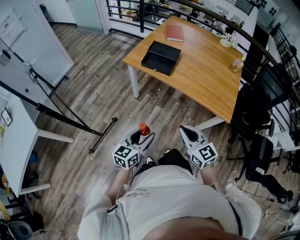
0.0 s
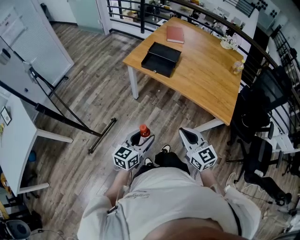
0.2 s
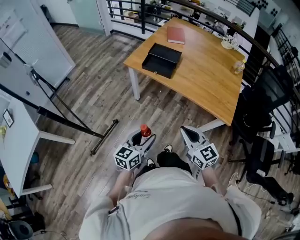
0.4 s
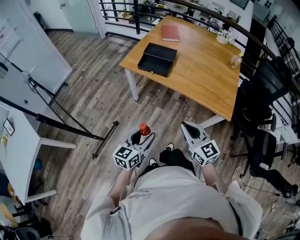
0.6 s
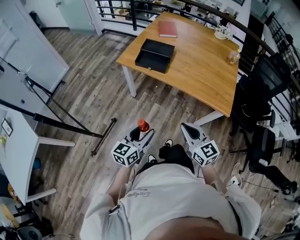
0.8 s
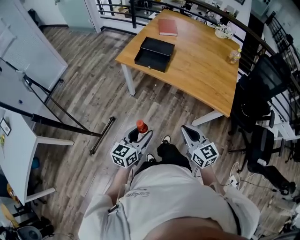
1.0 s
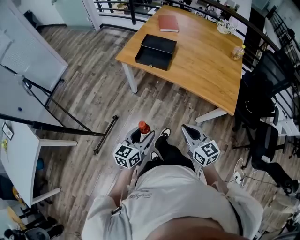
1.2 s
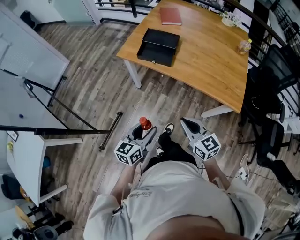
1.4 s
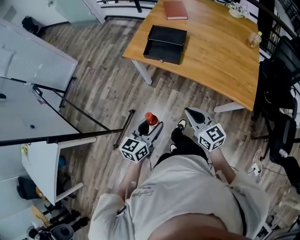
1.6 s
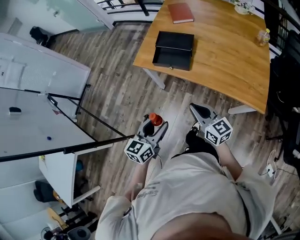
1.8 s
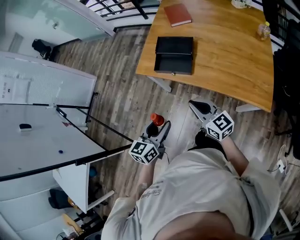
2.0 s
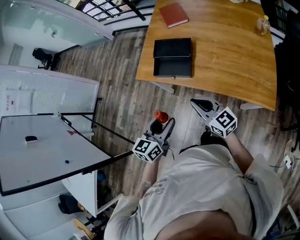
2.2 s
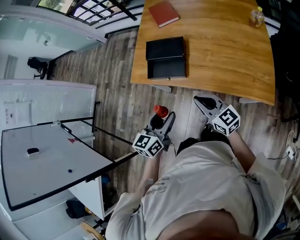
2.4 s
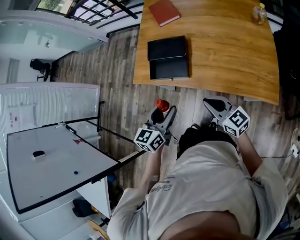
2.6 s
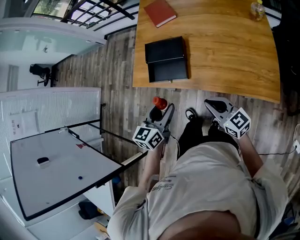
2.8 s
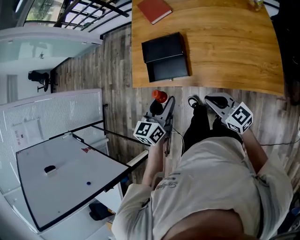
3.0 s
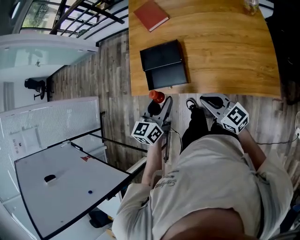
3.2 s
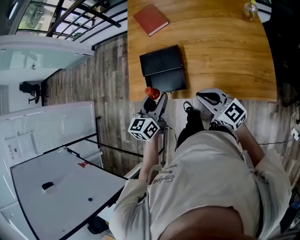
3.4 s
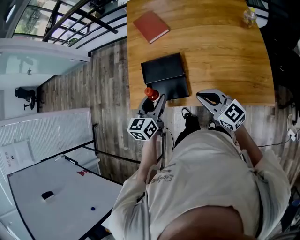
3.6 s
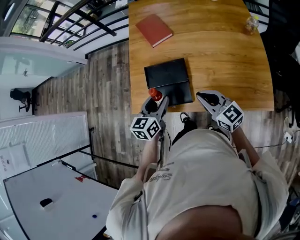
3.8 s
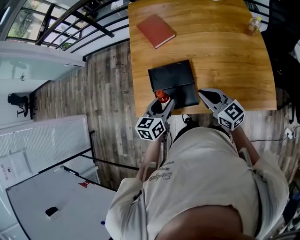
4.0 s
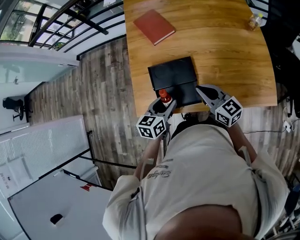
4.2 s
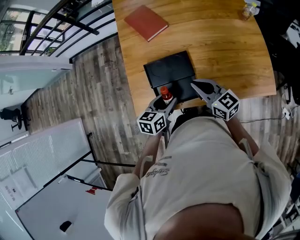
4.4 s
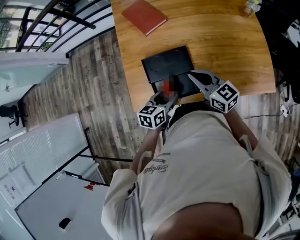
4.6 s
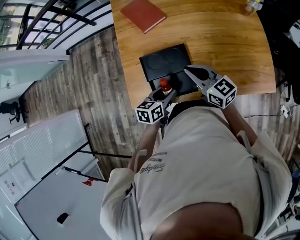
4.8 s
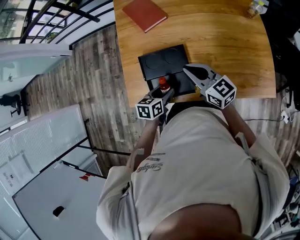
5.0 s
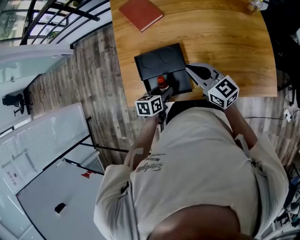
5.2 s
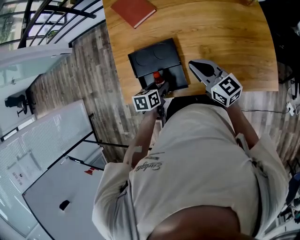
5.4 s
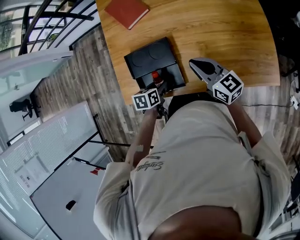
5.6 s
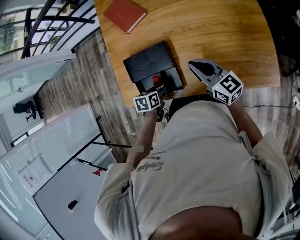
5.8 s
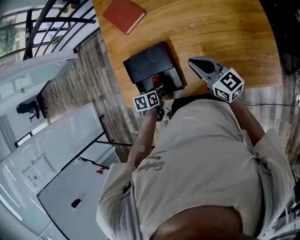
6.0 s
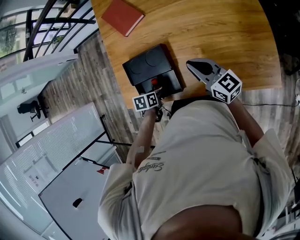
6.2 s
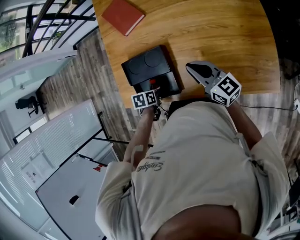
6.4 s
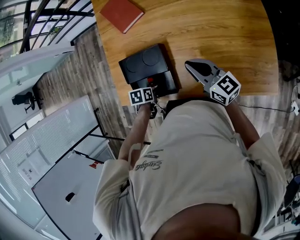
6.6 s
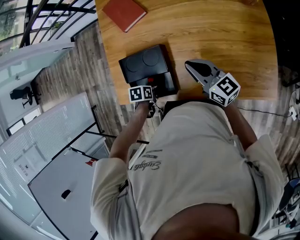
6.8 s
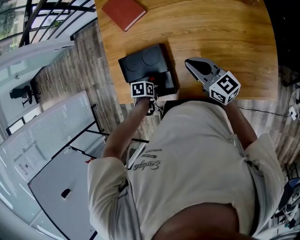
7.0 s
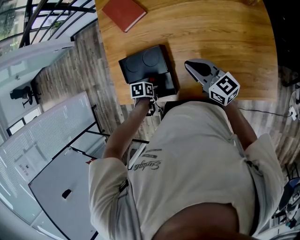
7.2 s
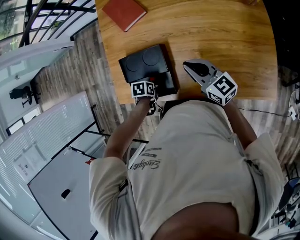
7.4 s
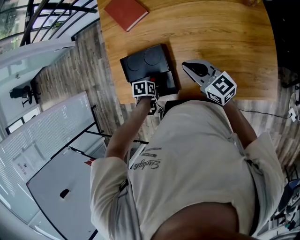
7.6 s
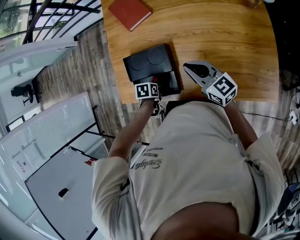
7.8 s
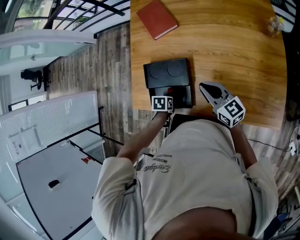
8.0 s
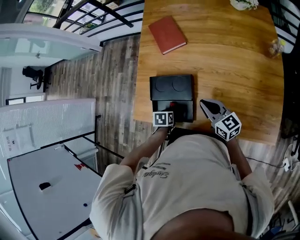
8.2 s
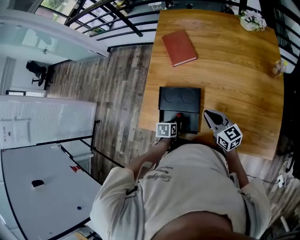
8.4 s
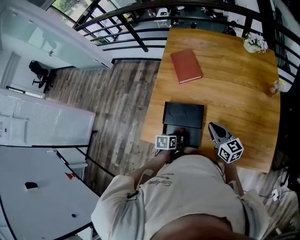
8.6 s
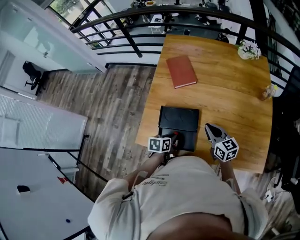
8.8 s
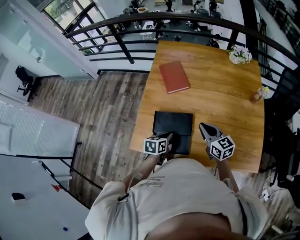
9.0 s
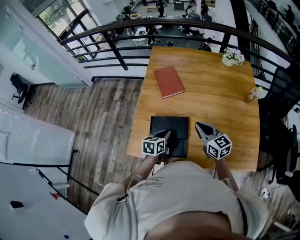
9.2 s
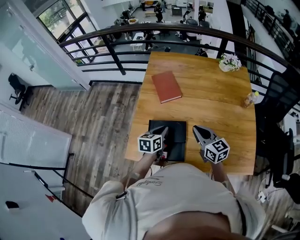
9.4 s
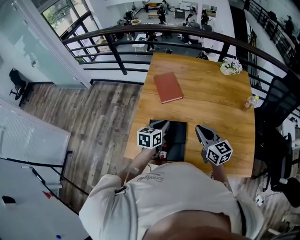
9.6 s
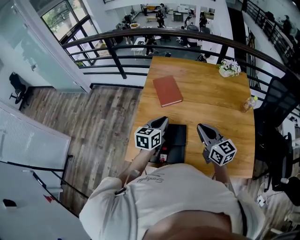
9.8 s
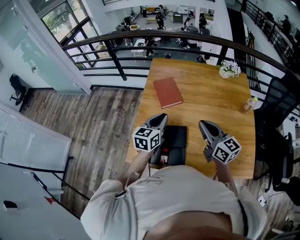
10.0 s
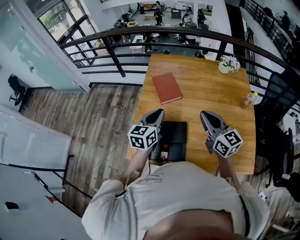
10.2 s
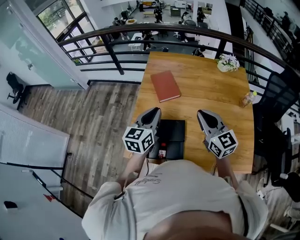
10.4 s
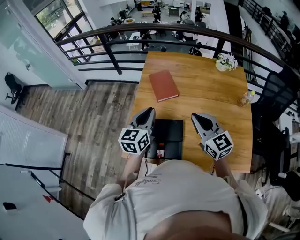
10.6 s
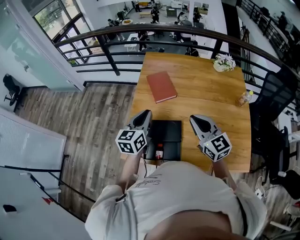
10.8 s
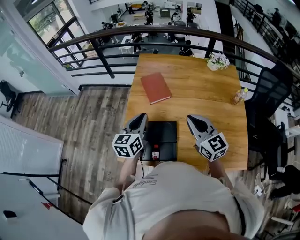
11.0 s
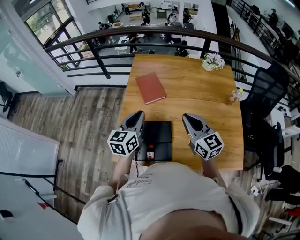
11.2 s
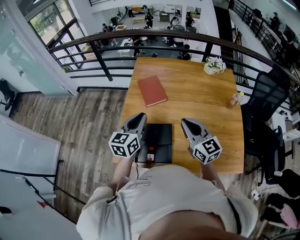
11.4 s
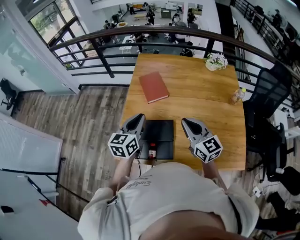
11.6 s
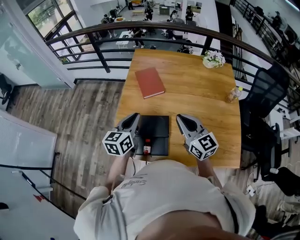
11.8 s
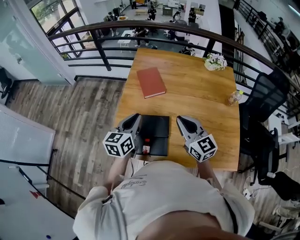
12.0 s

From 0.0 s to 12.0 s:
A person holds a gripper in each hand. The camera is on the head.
From 0.0 s to 1.6 s: The grippers both shift forward by roughly 15 cm.
From 1.6 s to 3.0 s: The left gripper is displaced forward by some 30 cm. The right gripper travels forward and to the right by roughly 20 cm.
From 3.0 s to 4.4 s: The right gripper travels forward and to the left by roughly 25 cm. The left gripper goes some 20 cm forward, downward and to the left, and changes its angle by roughly 30 degrees.
From 4.4 s to 6.0 s: The left gripper is displaced downward by some 15 cm, and points its fingers about 30 degrees further downward, while the right gripper moves to the right, approximately 15 cm.
From 6.0 s to 7.6 s: The left gripper turns by about 20 degrees.
From 7.6 s to 9.0 s: The right gripper changes place by approximately 10 cm; the left gripper travels upward by about 15 cm, tilts its fingers about 30 degrees upward, and closes its fingers.
From 9.0 s to 10.4 s: The grippers both shift upward by about 20 cm. The right gripper rotates approximately 20 degrees, while the left gripper tilts its fingers approximately 30 degrees upward.
From 10.4 s to 12.0 s: The left gripper changes place by about 5 cm, while the right gripper changes place by some 5 cm.

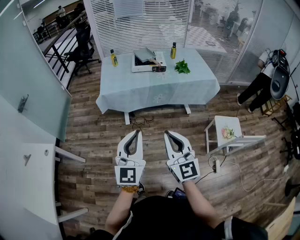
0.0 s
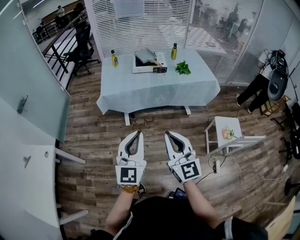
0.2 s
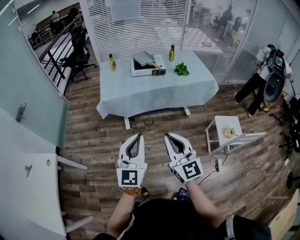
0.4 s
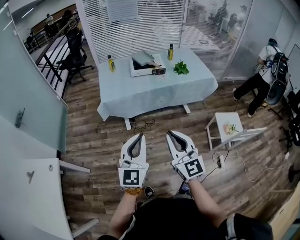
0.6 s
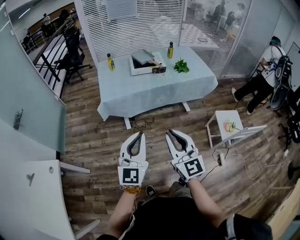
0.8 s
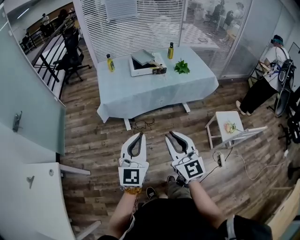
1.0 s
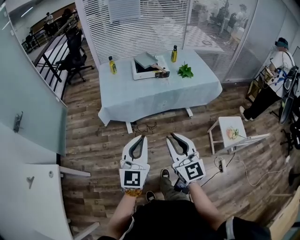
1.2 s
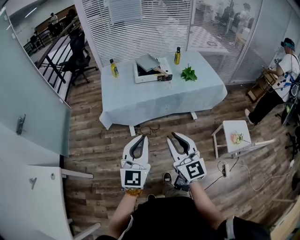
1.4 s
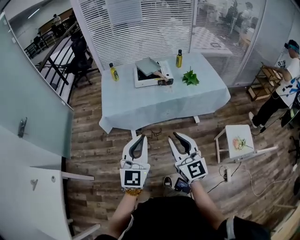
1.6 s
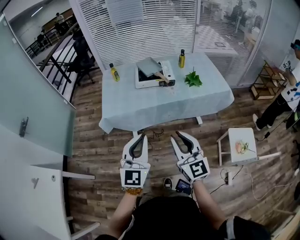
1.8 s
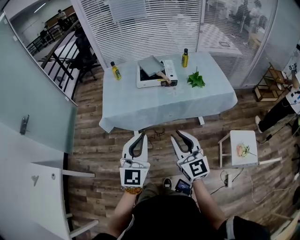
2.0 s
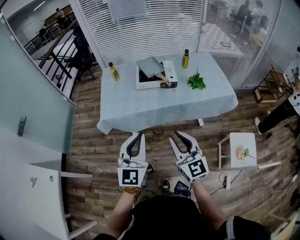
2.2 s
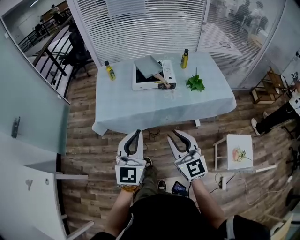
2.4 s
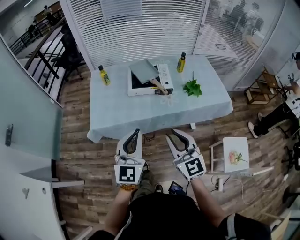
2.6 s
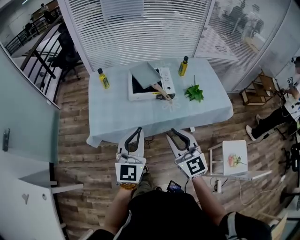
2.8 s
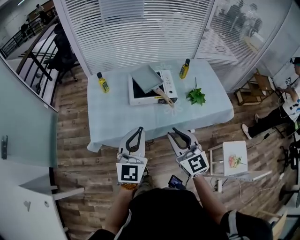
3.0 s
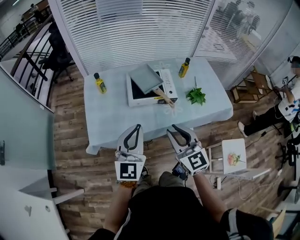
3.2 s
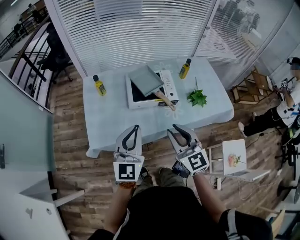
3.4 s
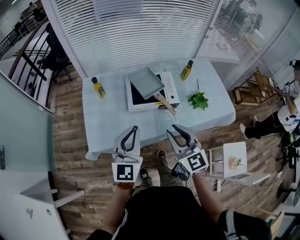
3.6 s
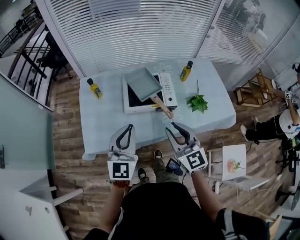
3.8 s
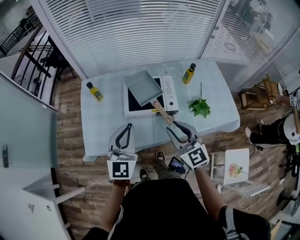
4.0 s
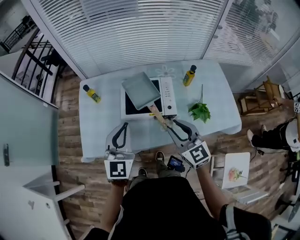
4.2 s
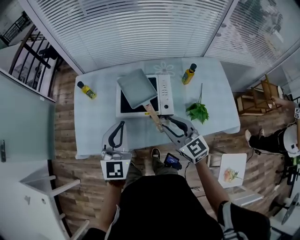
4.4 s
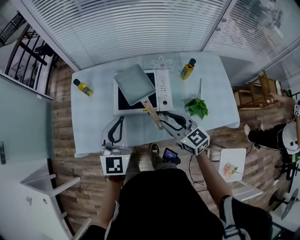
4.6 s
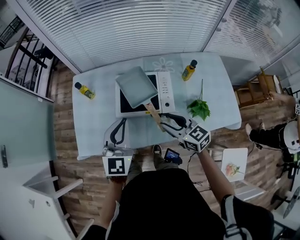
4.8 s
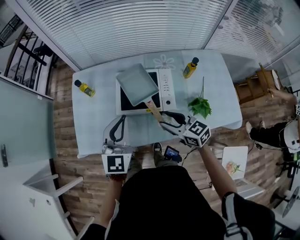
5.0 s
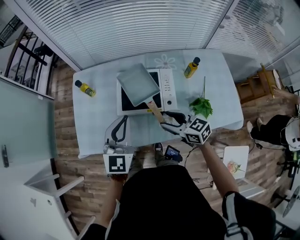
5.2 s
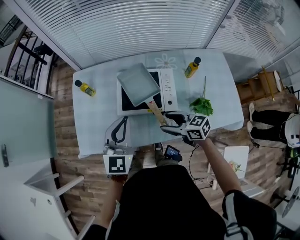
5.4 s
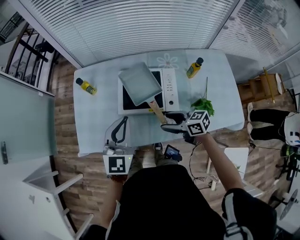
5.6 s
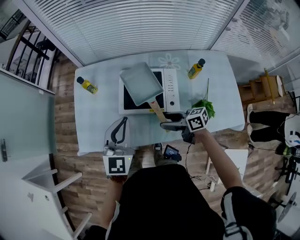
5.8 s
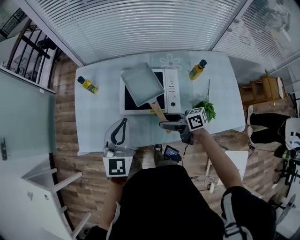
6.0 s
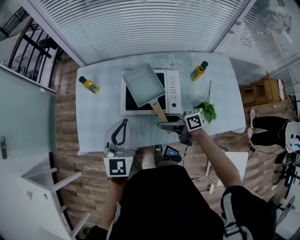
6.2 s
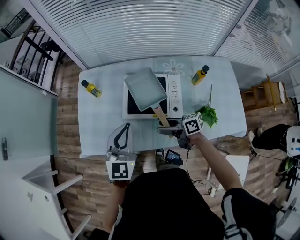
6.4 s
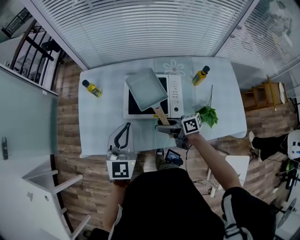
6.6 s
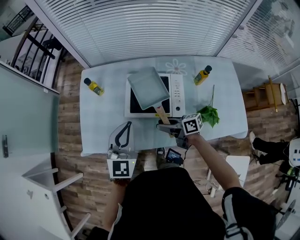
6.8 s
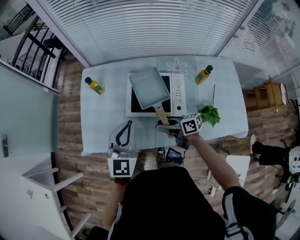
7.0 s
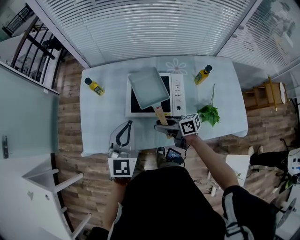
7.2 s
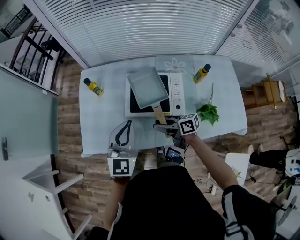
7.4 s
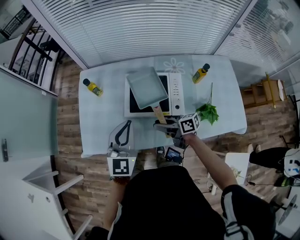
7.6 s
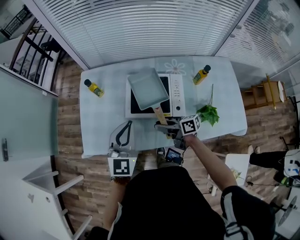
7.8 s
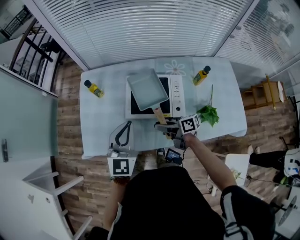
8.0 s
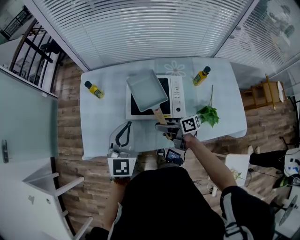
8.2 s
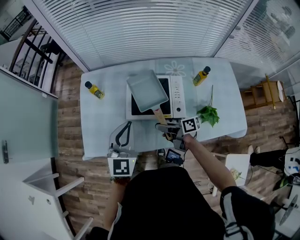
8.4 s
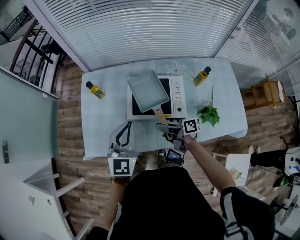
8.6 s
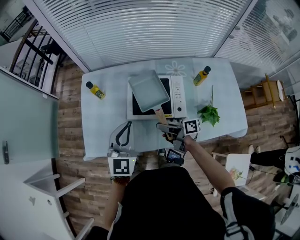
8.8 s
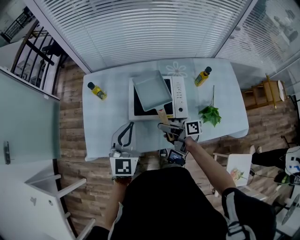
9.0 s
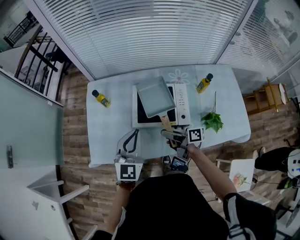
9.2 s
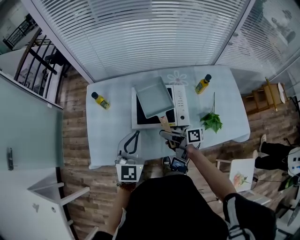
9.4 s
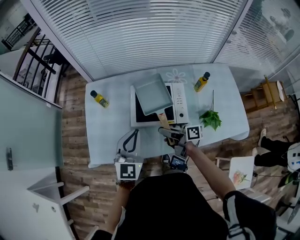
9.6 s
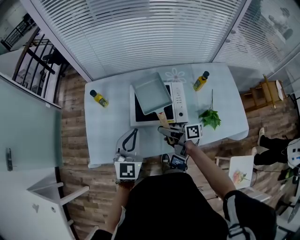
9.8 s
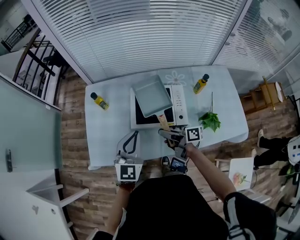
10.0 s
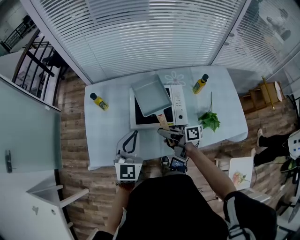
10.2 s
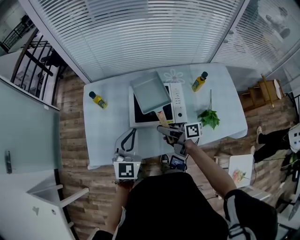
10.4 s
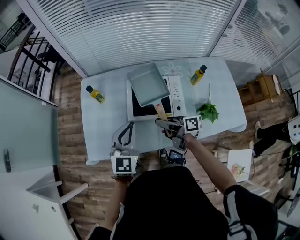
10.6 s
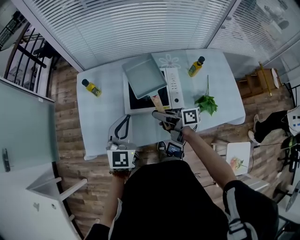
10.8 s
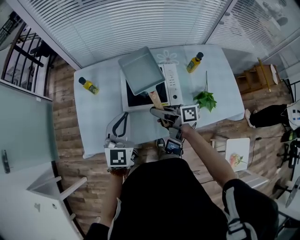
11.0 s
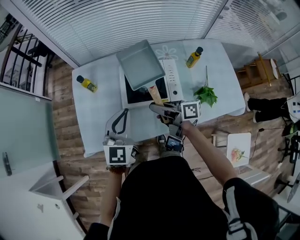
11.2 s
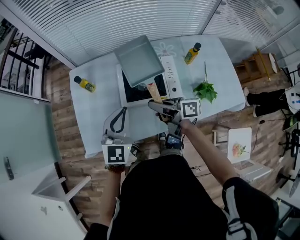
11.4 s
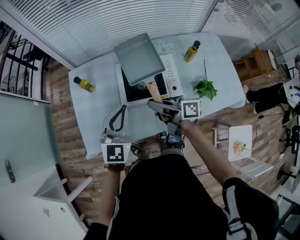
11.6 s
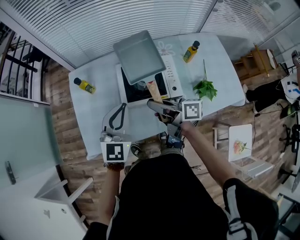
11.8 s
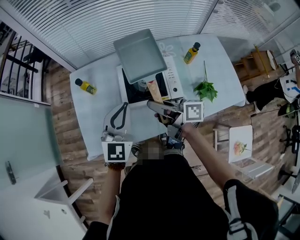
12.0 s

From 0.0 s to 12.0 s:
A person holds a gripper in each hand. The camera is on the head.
From 0.0 s to 1.6 s: Both grippers move forward, approximately 20 cm.
From 1.6 s to 3.0 s: Both grippers travel together forward, about 30 cm.
From 3.0 s to 4.4 s: The left gripper shifts approximately 20 cm forward. The right gripper goes approximately 25 cm forward and to the right.
From 4.4 s to 6.0 s: The right gripper is displaced downward by some 10 cm, rotates around the line of its fingers by roughly 50 degrees, clockwise from behind, and opens.
From 6.0 s to 7.6 s: The right gripper changes place by some 5 cm, and closes its fingers.
From 7.6 s to 10.4 s: The grippers make only small movements.
From 10.4 s to 12.0 s: The right gripper goes some 10 cm upward.
